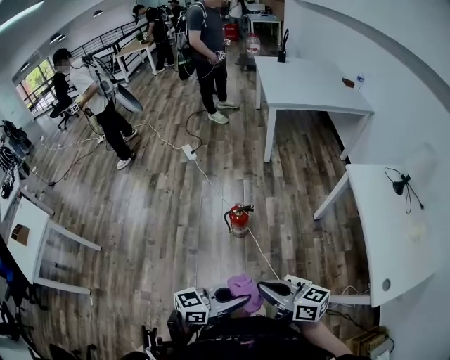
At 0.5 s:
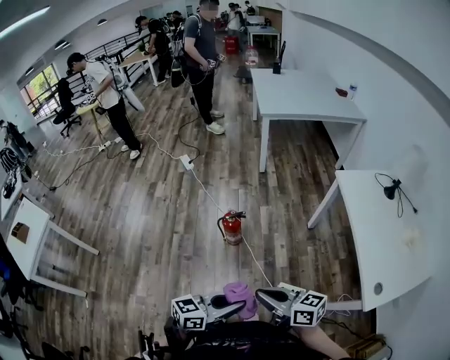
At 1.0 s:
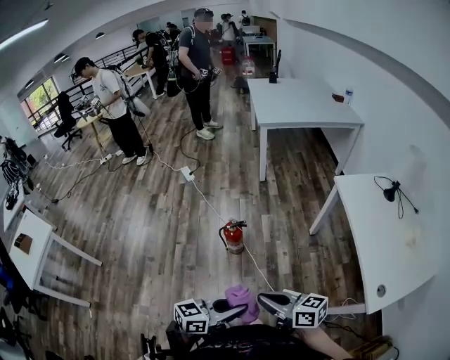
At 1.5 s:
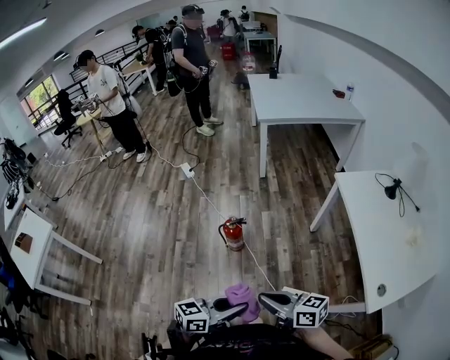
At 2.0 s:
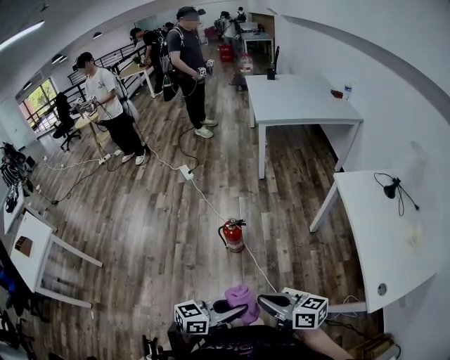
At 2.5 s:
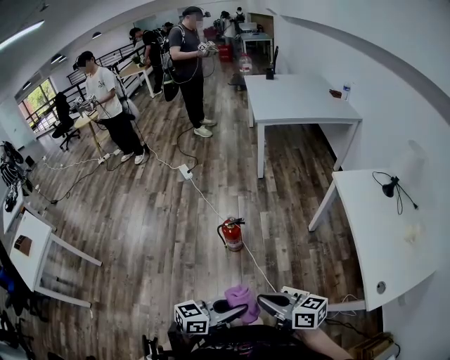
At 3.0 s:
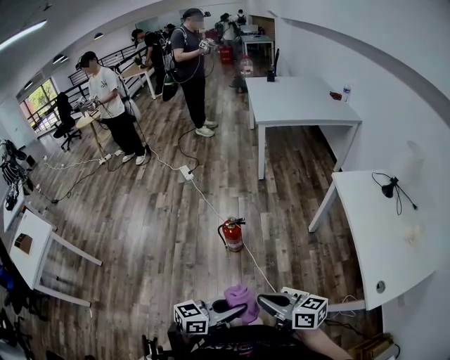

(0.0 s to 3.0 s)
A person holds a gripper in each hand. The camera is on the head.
0.0 s - 1.5 s: Both grippers travel together to the right, some 5 cm.
1.5 s - 3.0 s: The grippers stay close to where they were, moving slightly.

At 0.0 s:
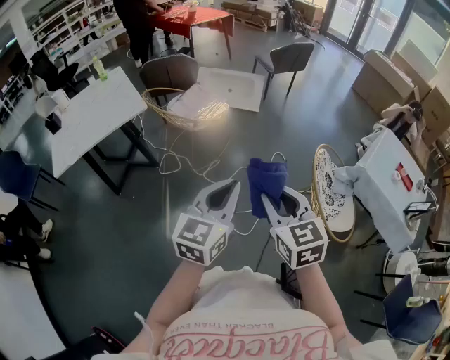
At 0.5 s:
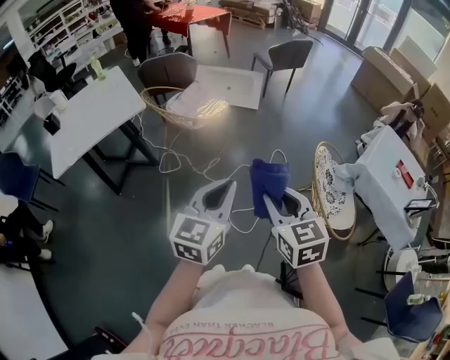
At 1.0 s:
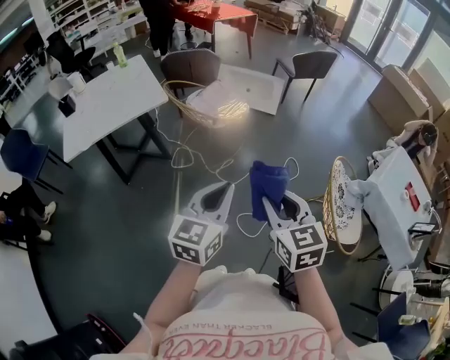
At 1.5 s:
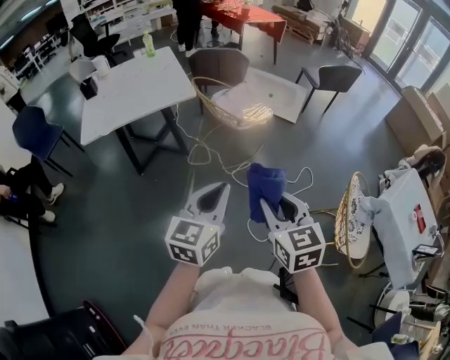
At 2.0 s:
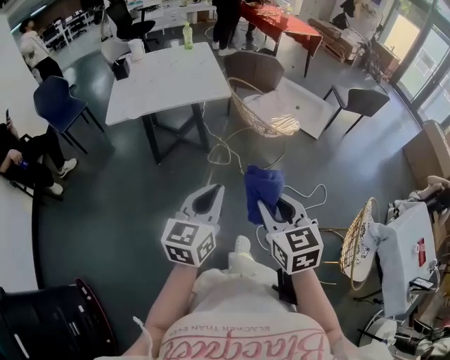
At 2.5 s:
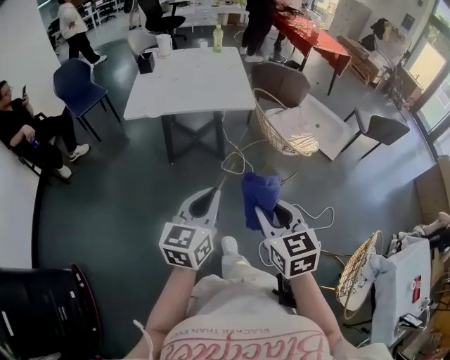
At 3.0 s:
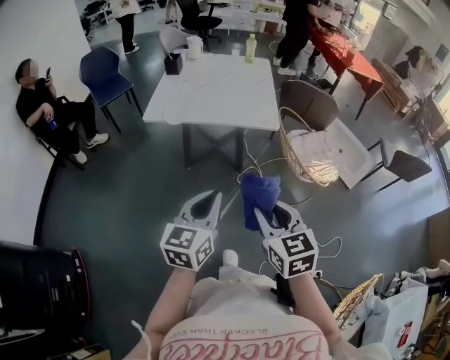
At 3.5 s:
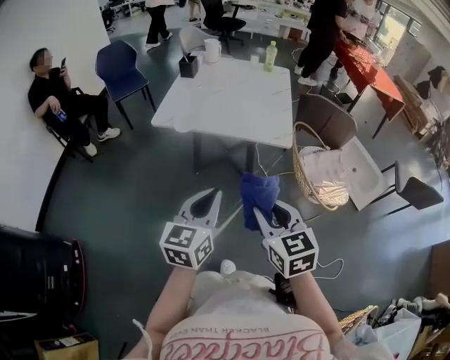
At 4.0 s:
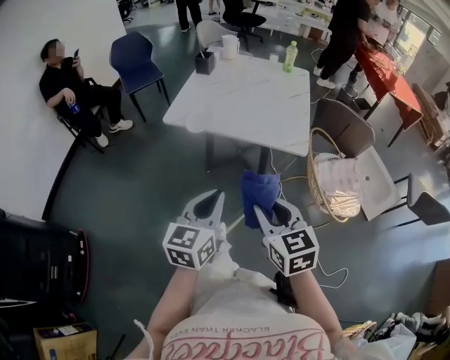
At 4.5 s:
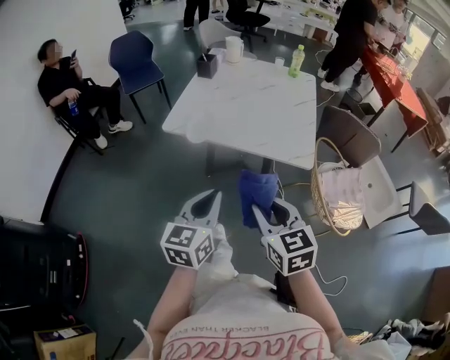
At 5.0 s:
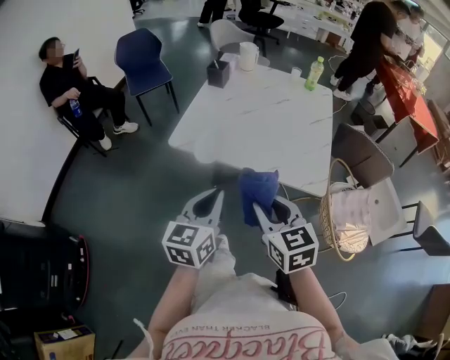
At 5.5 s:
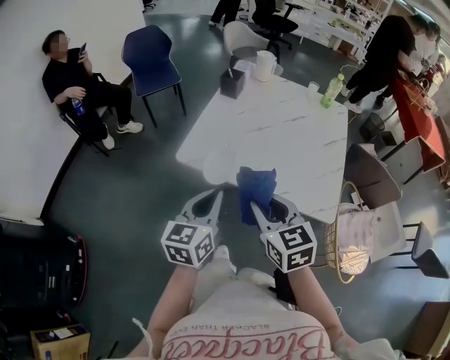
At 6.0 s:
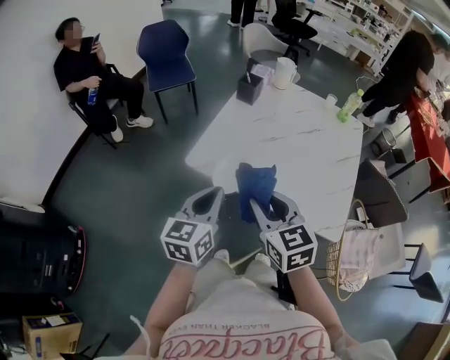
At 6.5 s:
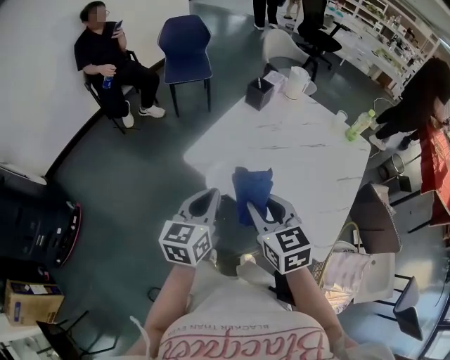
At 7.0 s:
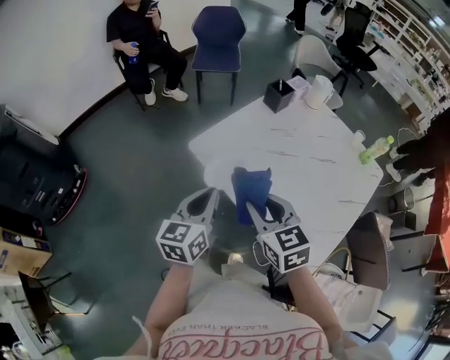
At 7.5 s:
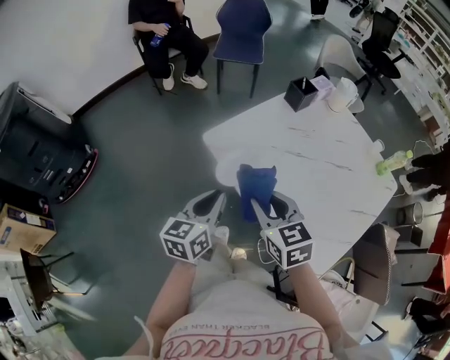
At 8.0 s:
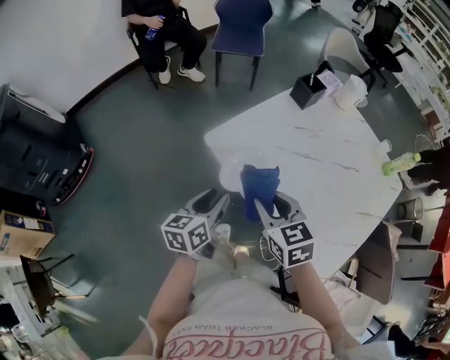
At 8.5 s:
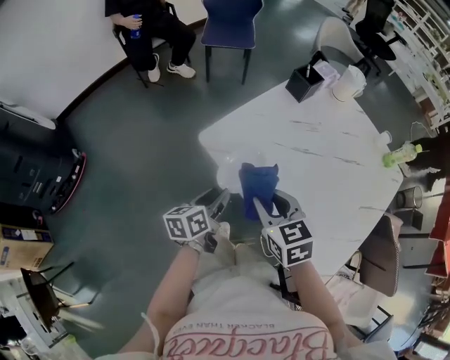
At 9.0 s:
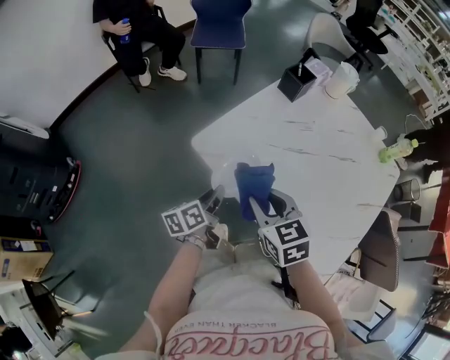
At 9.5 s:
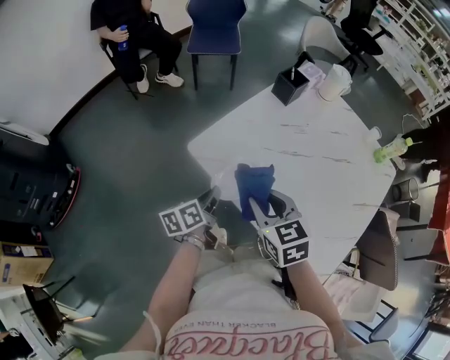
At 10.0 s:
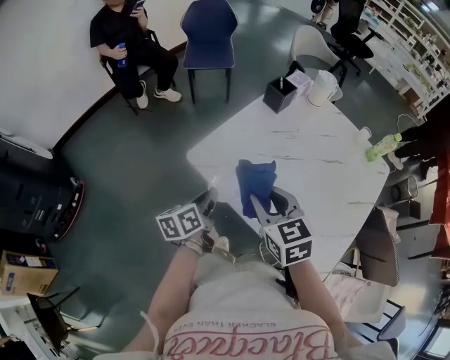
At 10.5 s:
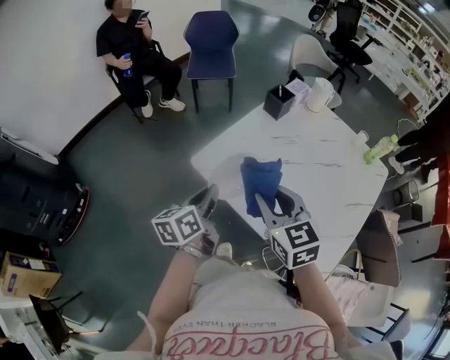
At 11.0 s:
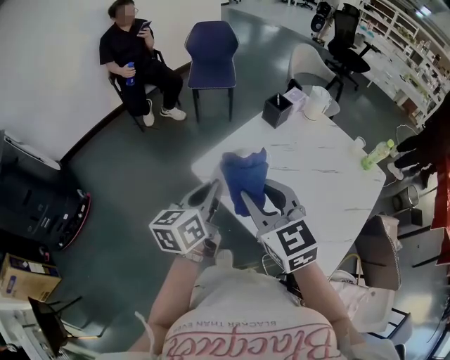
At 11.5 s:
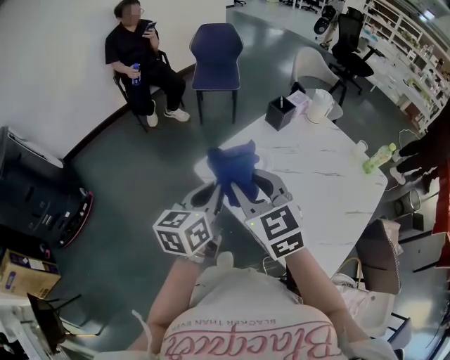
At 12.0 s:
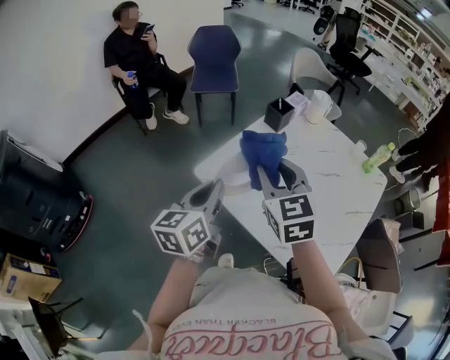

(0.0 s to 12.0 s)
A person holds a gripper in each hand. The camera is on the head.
0.0 s - 2.0 s: The left gripper shifts by approximately 30 cm, and turns by about 30 degrees; the right gripper changes place by roughly 25 cm, and swivels some 20 degrees.
2.0 s - 4.0 s: The left gripper shifts by approximately 25 cm, and swivels roughly 30 degrees. Meanwhile the right gripper ends up some 30 cm from where it was, and rotates about 30 degrees.
4.0 s - 6.0 s: The two grippers go roughly 35 cm forward.
6.0 s - 8.0 s: Both grippers move downward, about 10 cm. The right gripper turns by roughly 30 degrees, while the left gripper rotates some 30 degrees, and opens its fingers.
8.0 s - 10.0 s: The right gripper moves roughly 5 cm; the left gripper travels forward by some 5 cm, goes downward and returns, about 10 cm each way, and closes up.
10.0 s - 12.0 s: The right gripper travels upward by roughly 10 cm, while the left gripper goes about 20 cm upward, and changes its angle by approximately 30 degrees.

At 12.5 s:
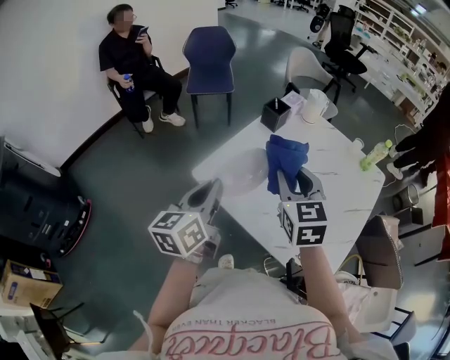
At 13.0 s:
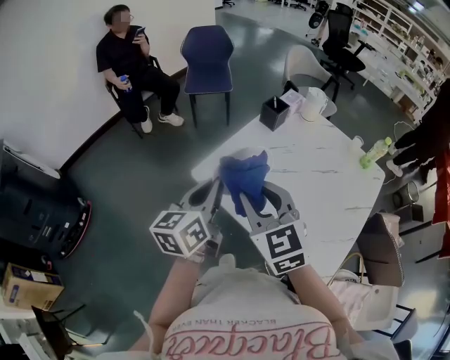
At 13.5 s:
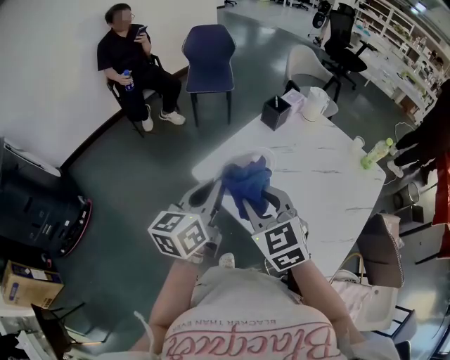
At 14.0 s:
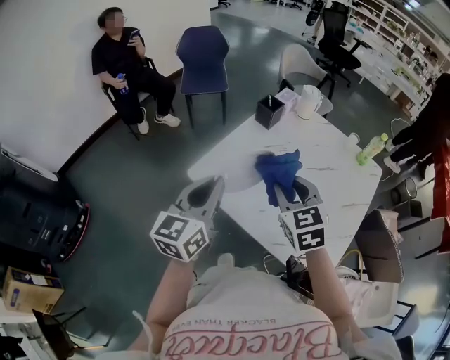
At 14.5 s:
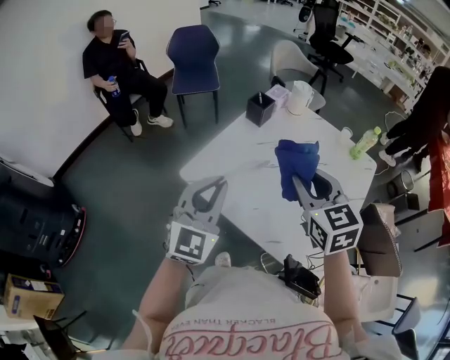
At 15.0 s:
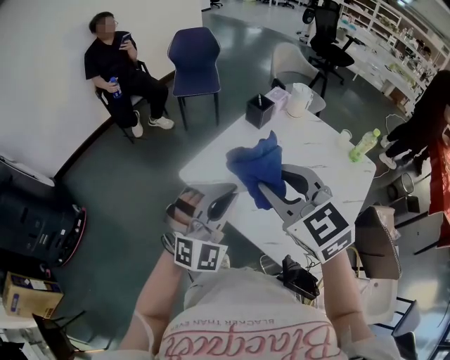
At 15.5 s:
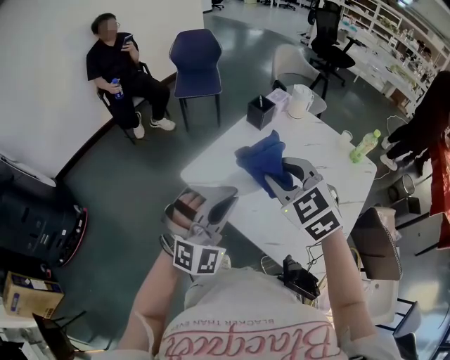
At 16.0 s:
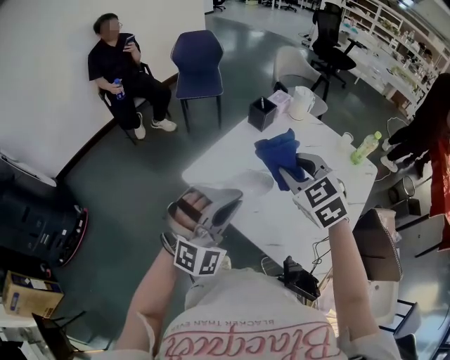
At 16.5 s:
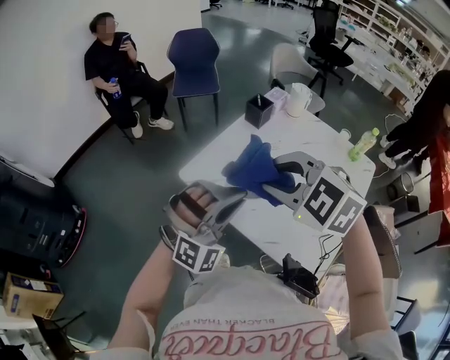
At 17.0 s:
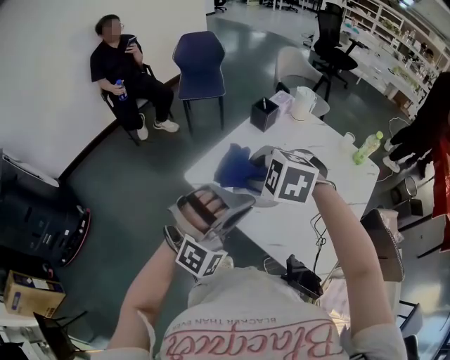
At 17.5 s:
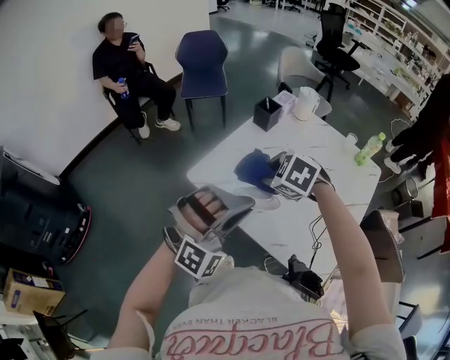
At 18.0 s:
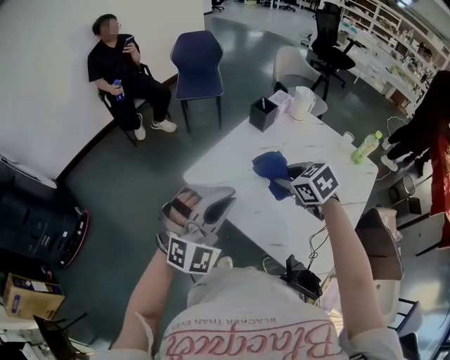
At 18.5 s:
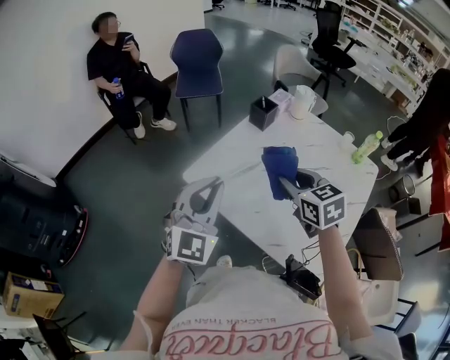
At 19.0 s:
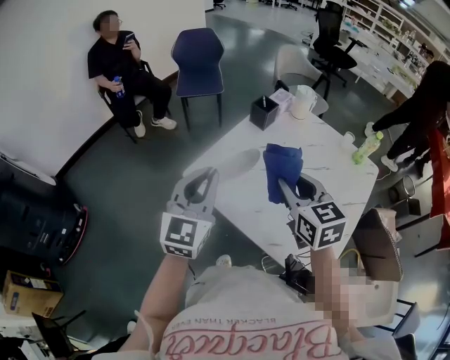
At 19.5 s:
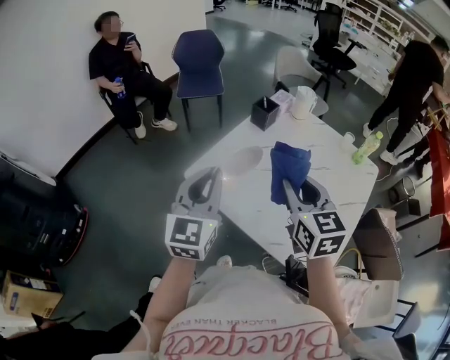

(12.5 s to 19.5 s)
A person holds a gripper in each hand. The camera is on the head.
12.5 s - 14.5 s: The grippers both shift to the right by some 5 cm. The left gripper rotates around the line of its fingers by approximately 50 degrees, clockwise from behind.
14.5 s - 16.0 s: The left gripper shifts by approximately 5 cm, and rolls clockwise, seen from behind, by roughly 40 degrees. Meanwhile the right gripper turns by roughly 30 degrees.
16.0 s - 17.5 s: The right gripper shifts roughly 10 cm downward and to the left, and swivels about 30 degrees.
17.5 s - 19.5 s: The left gripper heads to the left and forward, covering some 10 cm, and rotates around the line of its fingers by roughly 80 degrees, counterclockwise from behind. Meanwhile the right gripper travels upward and to the right by roughly 10 cm, and tips its fingers upward by about 40 degrees.

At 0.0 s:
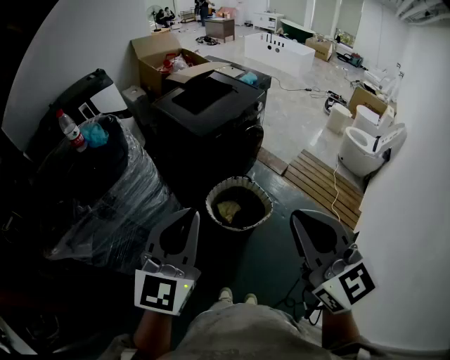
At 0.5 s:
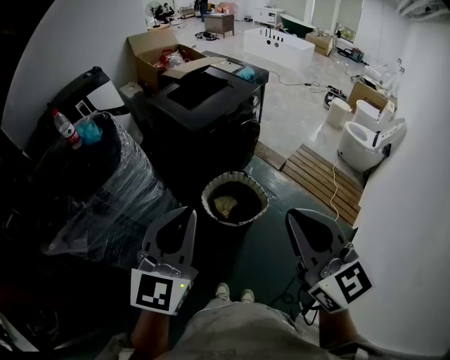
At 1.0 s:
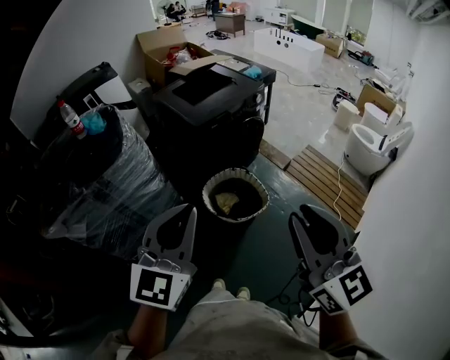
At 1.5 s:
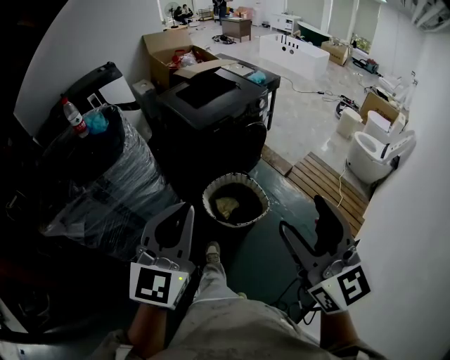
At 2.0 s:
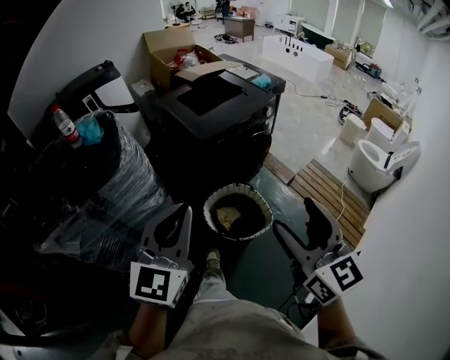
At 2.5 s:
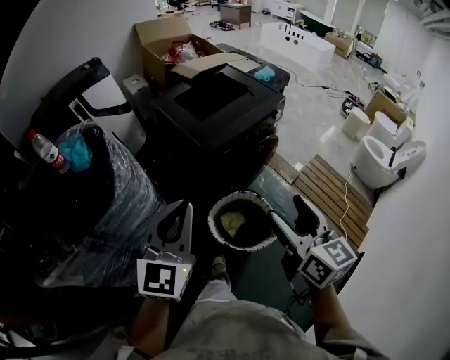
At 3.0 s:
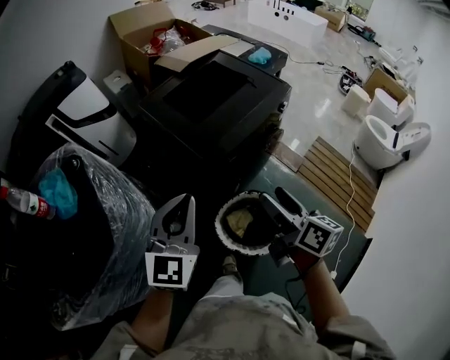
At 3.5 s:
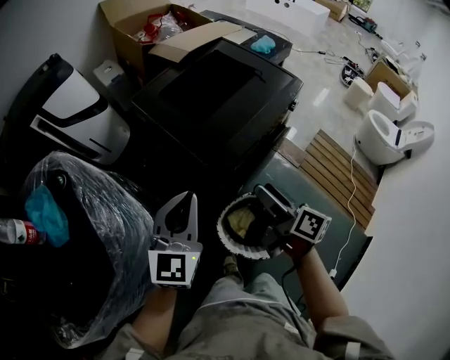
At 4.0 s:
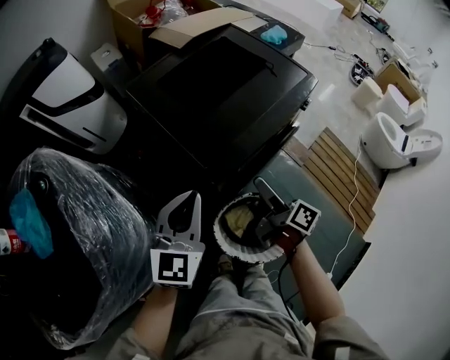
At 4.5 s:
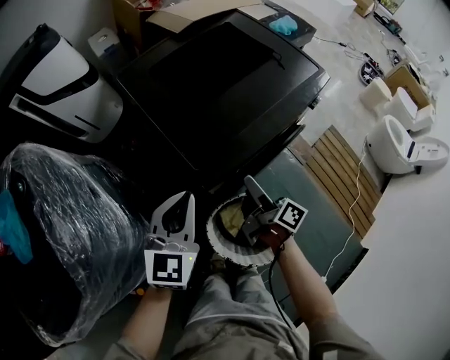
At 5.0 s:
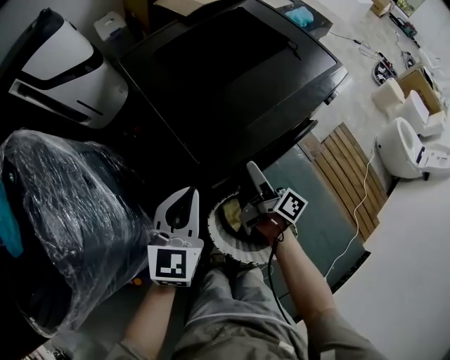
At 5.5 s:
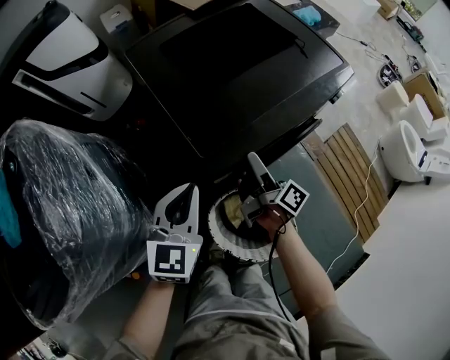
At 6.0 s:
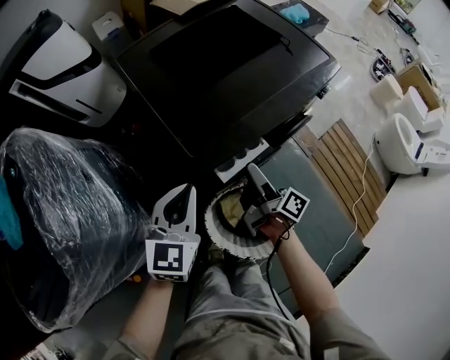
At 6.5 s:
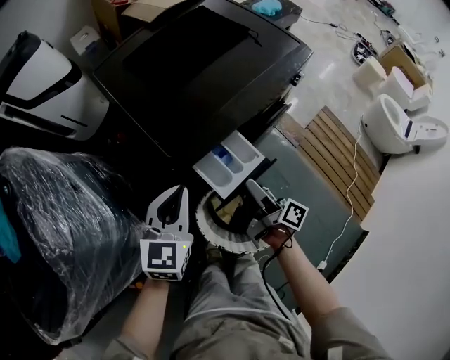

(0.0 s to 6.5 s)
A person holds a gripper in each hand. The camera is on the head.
0.0 s - 2.0 s: The left gripper heads forward, covering about 5 cm; the right gripper heads forward, downward and to the right, covering about 15 cm, and opens its fingers.
2.0 s - 4.5 s: The two grippers travel together, forward, about 50 cm. The two grippers go some 35 cm downward. The right gripper twists about 70 degrees clockwise, seen from behind.
4.5 s - 6.5 s: The right gripper heads backward, covering some 5 cm, while the left gripper moves roughly 5 cm.
